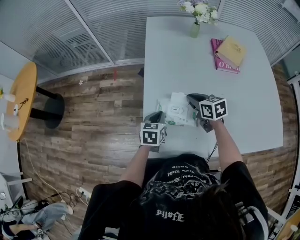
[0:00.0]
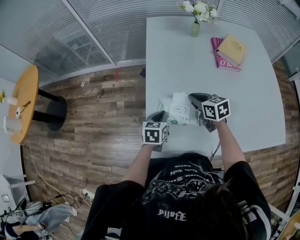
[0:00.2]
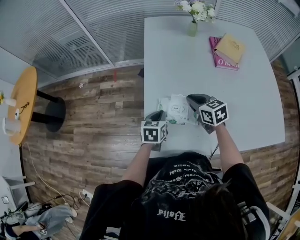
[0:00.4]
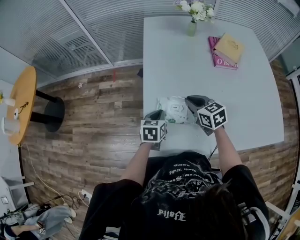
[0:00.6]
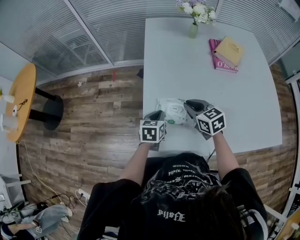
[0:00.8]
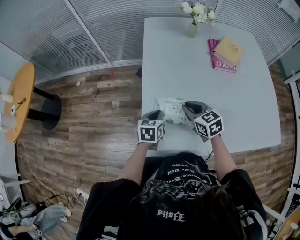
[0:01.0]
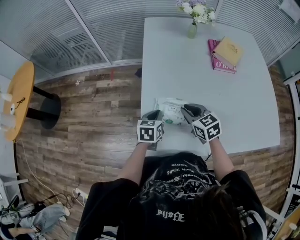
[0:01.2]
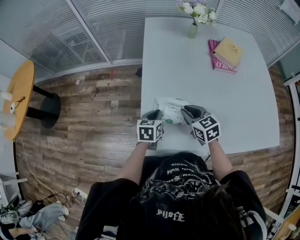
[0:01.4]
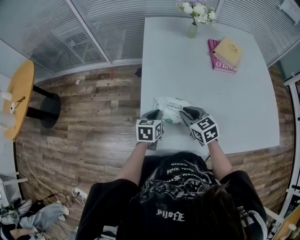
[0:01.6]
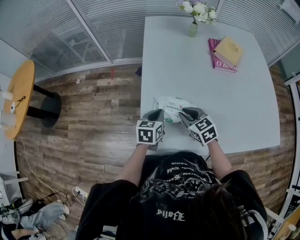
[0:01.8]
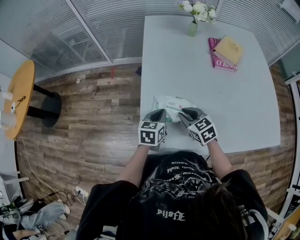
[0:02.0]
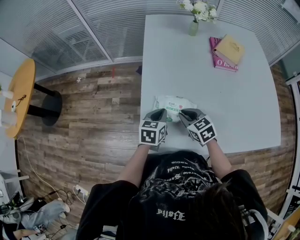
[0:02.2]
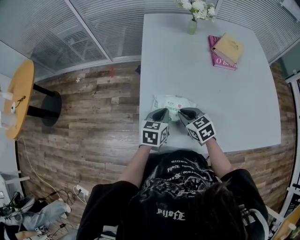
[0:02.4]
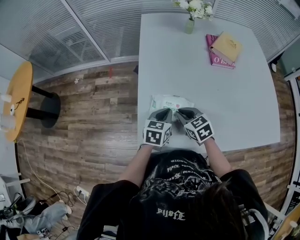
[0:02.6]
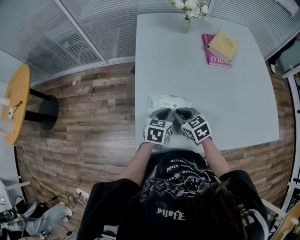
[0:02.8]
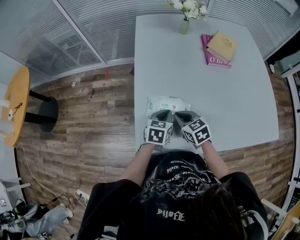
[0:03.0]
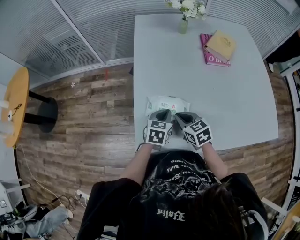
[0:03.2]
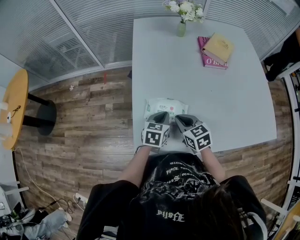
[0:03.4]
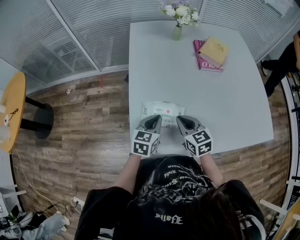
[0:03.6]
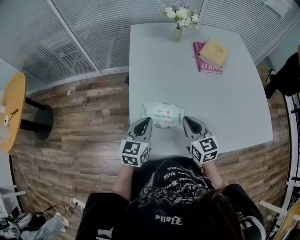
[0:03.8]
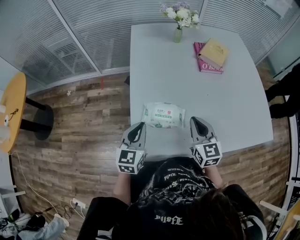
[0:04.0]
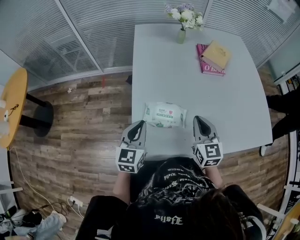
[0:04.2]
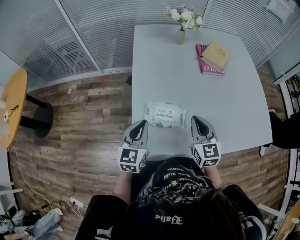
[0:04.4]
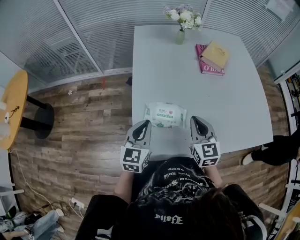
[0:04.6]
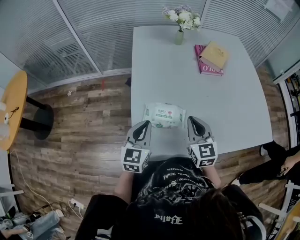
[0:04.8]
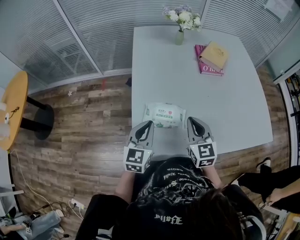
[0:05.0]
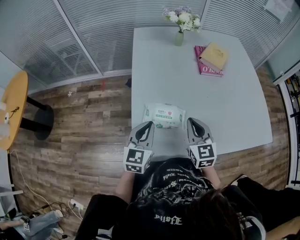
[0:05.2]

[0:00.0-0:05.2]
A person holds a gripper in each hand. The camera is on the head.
0:00.0 to 0:01.8: The right gripper goes roughly 10 cm backward, and turns by about 20 degrees.
0:01.8 to 0:03.4: The left gripper goes approximately 5 cm to the right.
0:03.4 to 0:05.2: The right gripper is displaced upward and to the right by about 10 cm, and swivels some 30 degrees. The left gripper shifts roughly 15 cm upward and to the left, and swivels about 30 degrees.

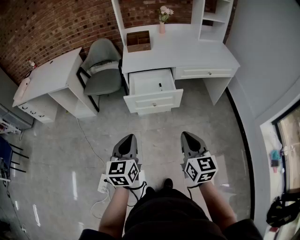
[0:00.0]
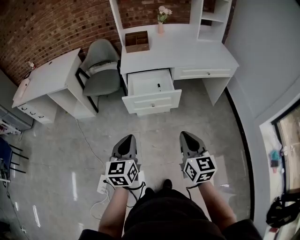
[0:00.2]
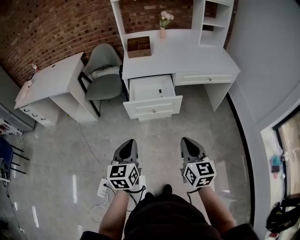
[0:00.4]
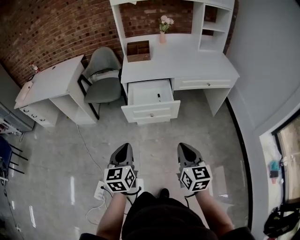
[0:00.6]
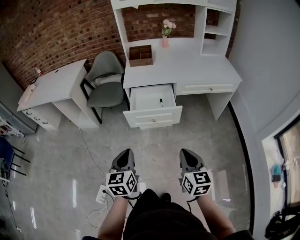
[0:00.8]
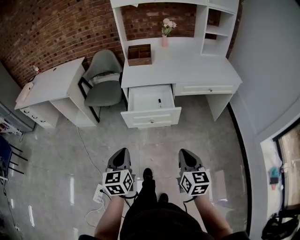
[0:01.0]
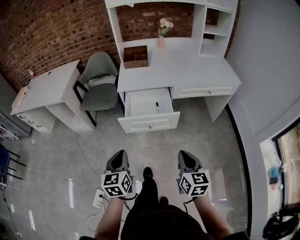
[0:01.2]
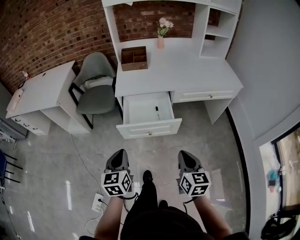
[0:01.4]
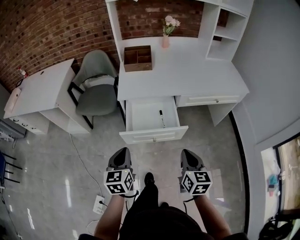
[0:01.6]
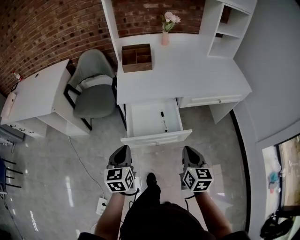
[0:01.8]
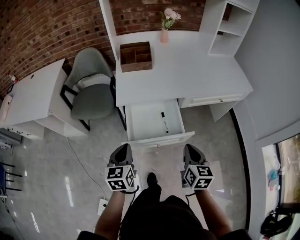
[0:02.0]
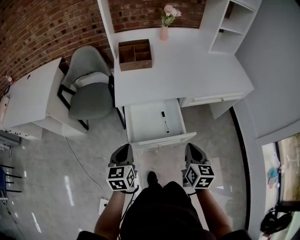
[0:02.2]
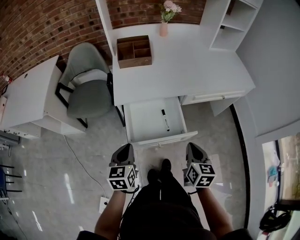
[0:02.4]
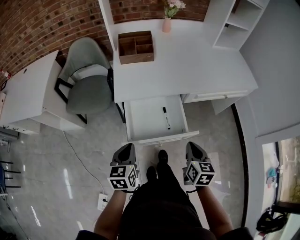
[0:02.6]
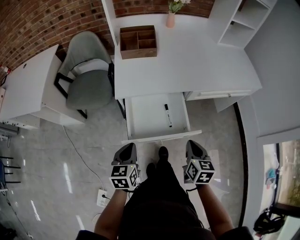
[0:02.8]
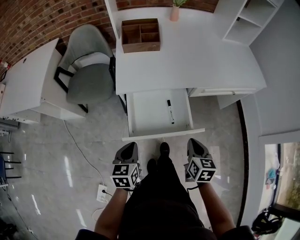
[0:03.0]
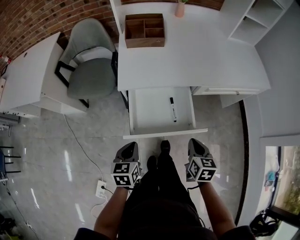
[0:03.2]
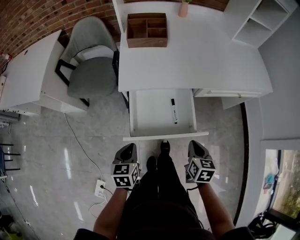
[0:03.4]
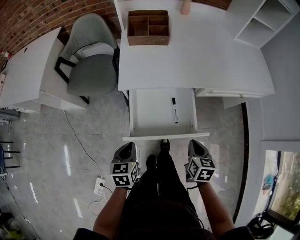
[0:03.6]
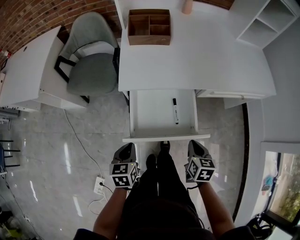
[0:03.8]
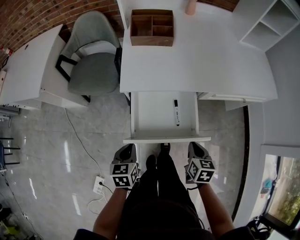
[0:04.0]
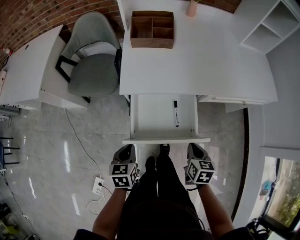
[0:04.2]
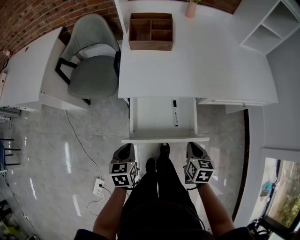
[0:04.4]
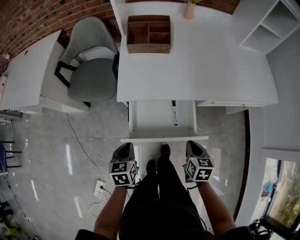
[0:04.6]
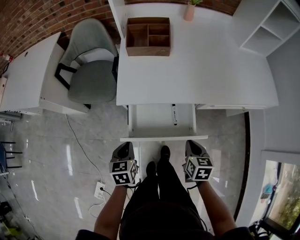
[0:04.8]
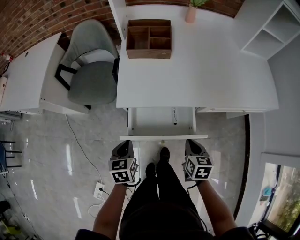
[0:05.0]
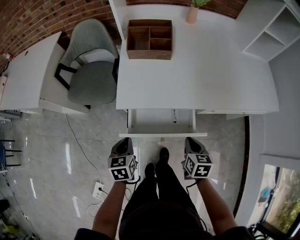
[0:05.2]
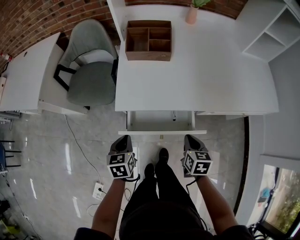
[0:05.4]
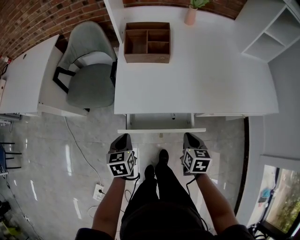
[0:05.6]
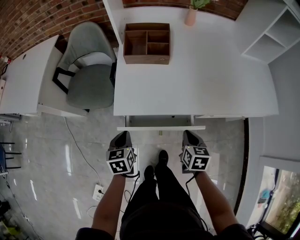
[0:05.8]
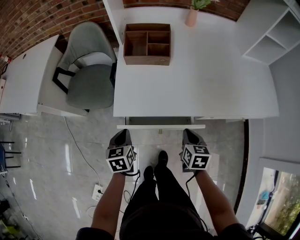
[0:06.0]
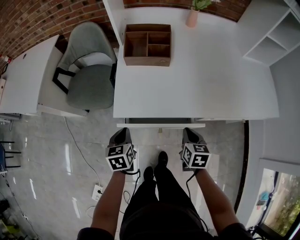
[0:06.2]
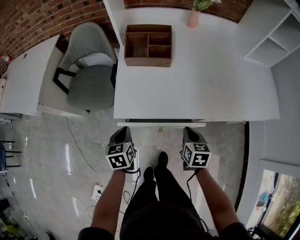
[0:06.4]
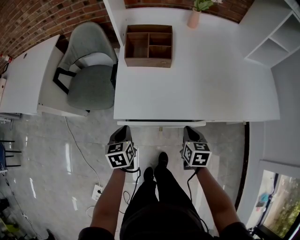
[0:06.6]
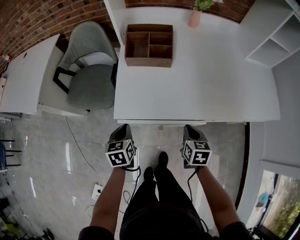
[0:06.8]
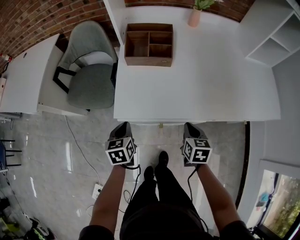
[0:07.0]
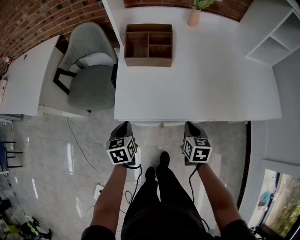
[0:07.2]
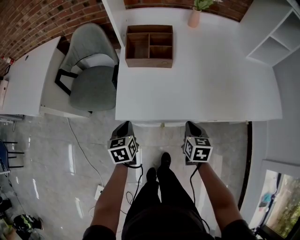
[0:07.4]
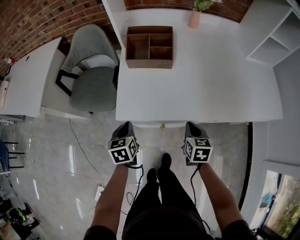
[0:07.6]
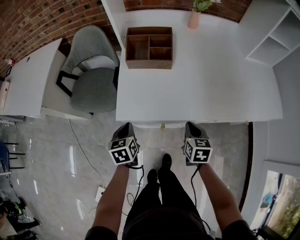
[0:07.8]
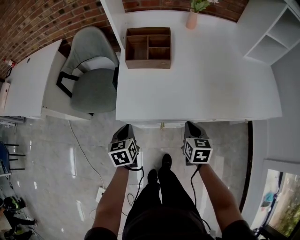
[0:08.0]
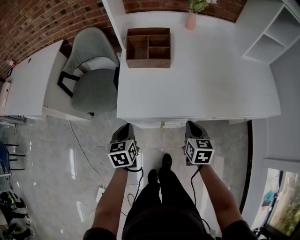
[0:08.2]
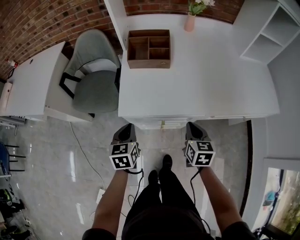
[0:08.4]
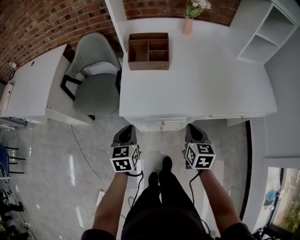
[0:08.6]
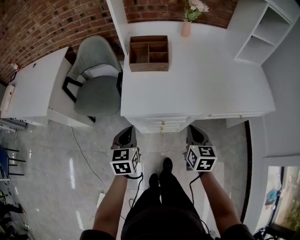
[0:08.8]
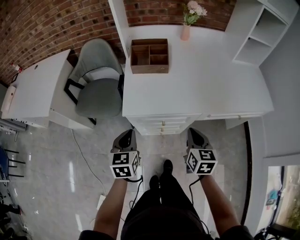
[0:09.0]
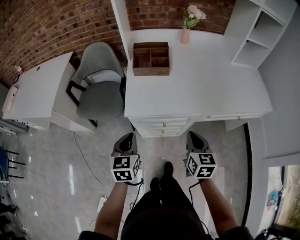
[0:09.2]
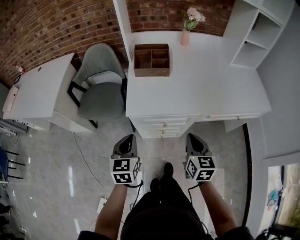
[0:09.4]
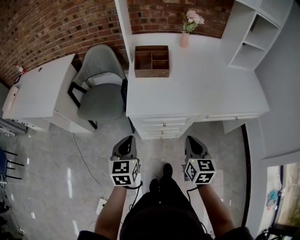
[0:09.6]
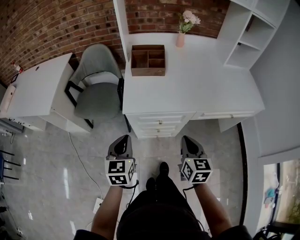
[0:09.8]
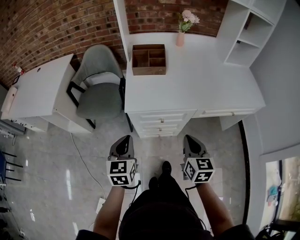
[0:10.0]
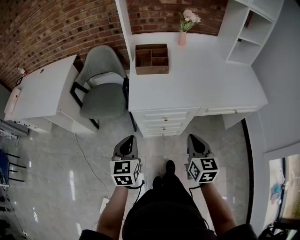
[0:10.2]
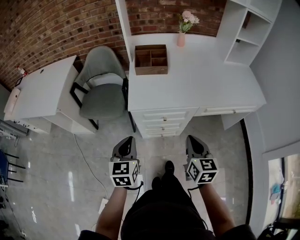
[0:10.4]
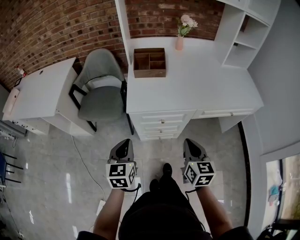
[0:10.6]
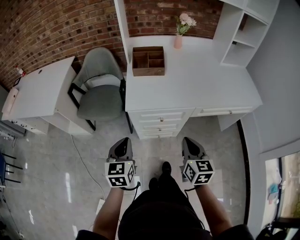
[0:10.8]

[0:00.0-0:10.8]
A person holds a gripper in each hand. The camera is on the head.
0:00.0 to 0:01.6: Both grippers travel together forward, approximately 20 cm.
0:01.6 to 0:03.0: The right gripper moves forward and downward, roughly 15 cm. Meanwhile the left gripper travels downward and forward by about 15 cm.
0:03.0 to 0:04.6: The right gripper is displaced forward and downward by roughly 10 cm, while the left gripper heads forward, covering roughly 5 cm.
0:04.6 to 0:06.2: The grippers both shift forward by about 15 cm.
0:06.2 to 0:07.8: The grippers stay close to where they were, moving slightly.
0:07.8 to 0:09.2: Both grippers travel together upward and backward, about 15 cm. The left gripper changes its angle by some 20 degrees.
0:09.2 to 0:10.8: Both grippers travel together backward, roughly 10 cm.

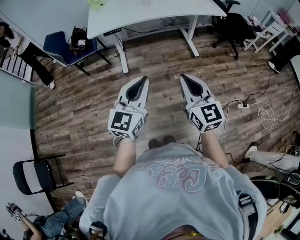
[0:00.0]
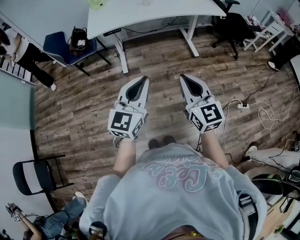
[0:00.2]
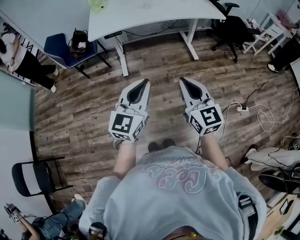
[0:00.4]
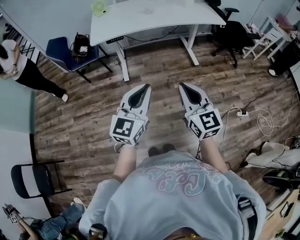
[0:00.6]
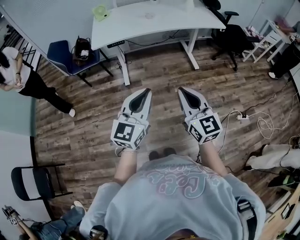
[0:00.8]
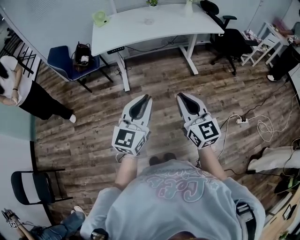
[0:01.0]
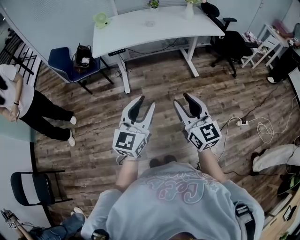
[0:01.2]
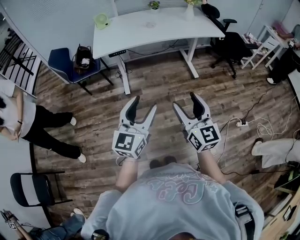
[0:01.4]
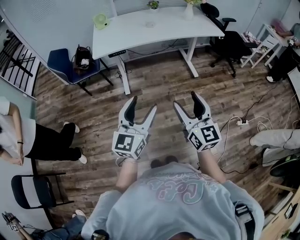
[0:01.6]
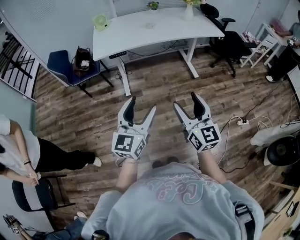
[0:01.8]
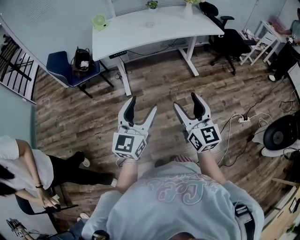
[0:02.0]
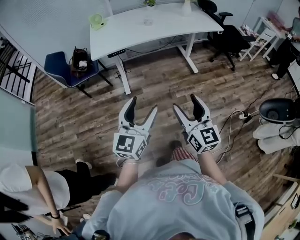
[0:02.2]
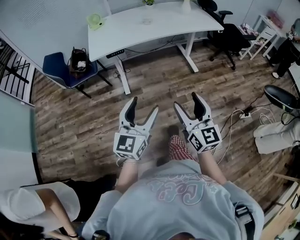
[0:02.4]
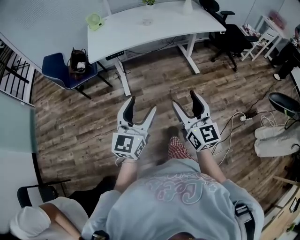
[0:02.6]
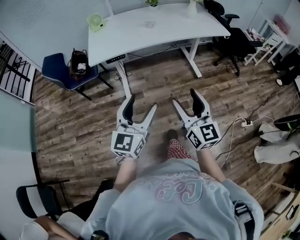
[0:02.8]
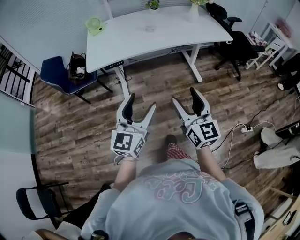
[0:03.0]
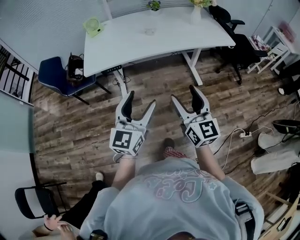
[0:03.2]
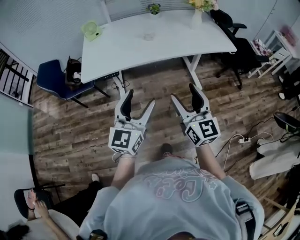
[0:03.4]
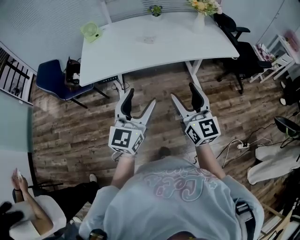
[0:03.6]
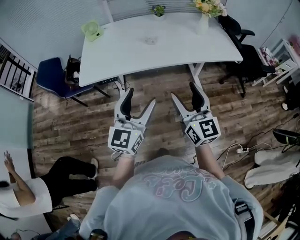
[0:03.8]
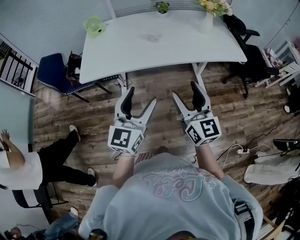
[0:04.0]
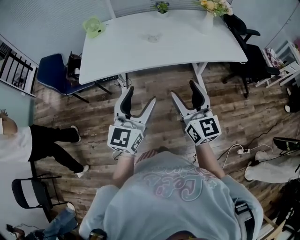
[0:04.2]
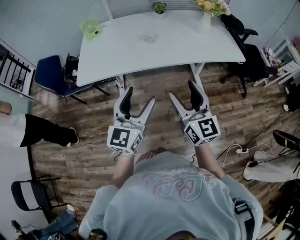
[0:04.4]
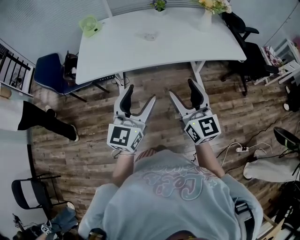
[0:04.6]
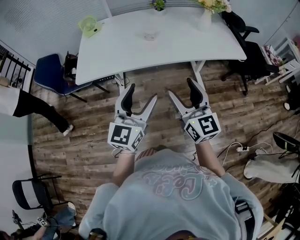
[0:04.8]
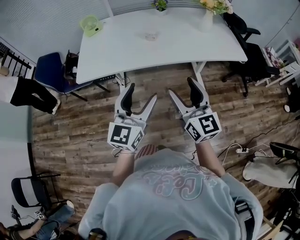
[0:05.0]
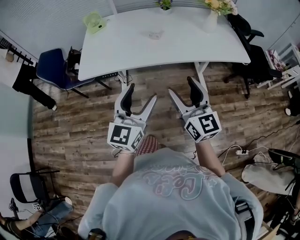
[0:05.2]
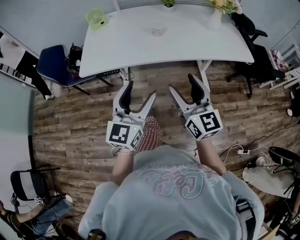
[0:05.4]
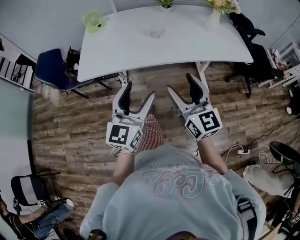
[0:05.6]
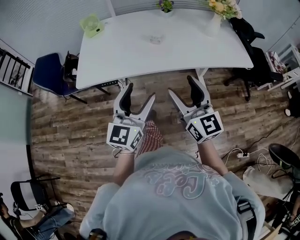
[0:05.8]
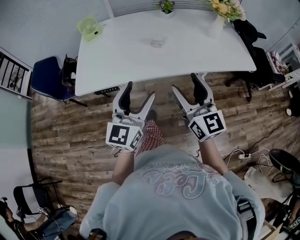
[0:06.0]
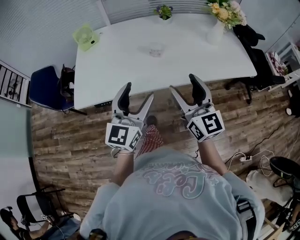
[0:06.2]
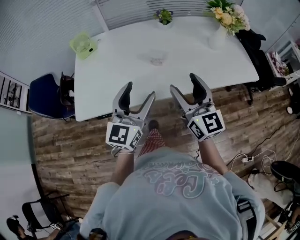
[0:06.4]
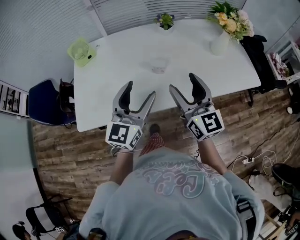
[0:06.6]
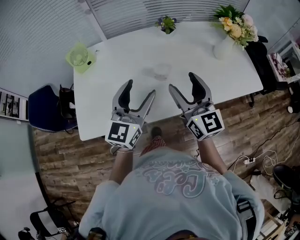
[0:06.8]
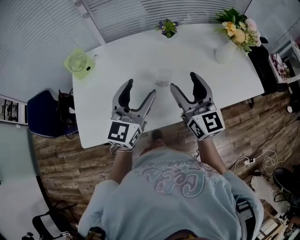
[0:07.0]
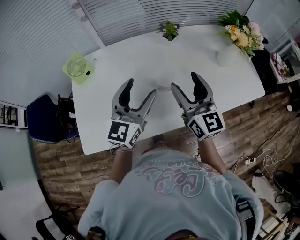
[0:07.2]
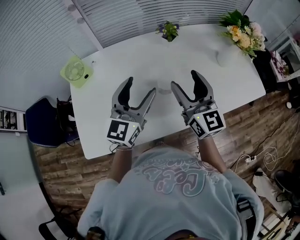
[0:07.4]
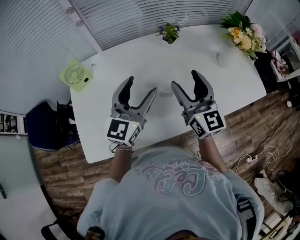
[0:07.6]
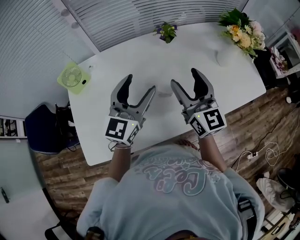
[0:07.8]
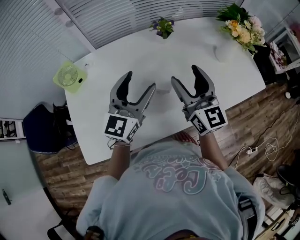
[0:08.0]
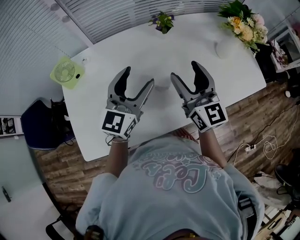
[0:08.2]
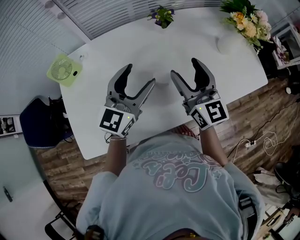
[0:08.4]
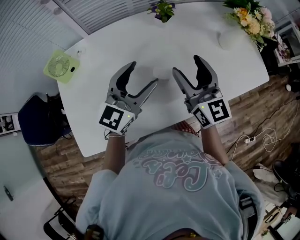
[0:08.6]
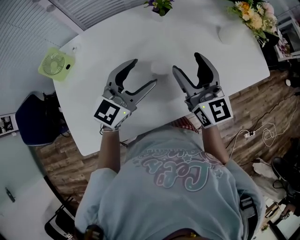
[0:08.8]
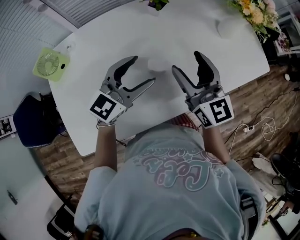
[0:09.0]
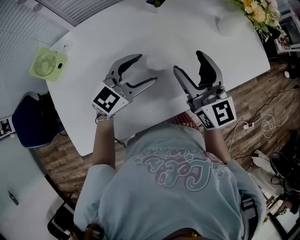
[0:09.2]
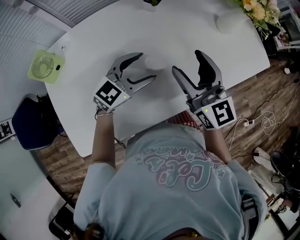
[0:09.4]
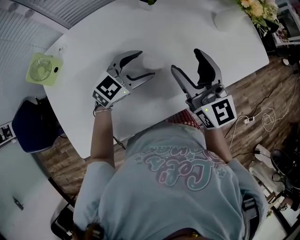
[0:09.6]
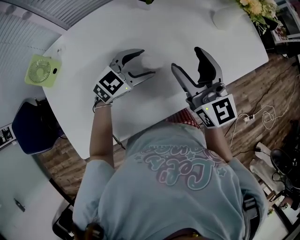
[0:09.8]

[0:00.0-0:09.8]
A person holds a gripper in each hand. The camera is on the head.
0:00.0 to 0:01.4: The right gripper opens up. The left gripper opens up.
0:01.4 to 0:02.8: The two grippers go approximately 10 cm forward.
0:02.8 to 0:04.2: Both grippers move forward, approximately 25 cm.
0:04.2 to 0:05.6: The grippers stay close to where they were, moving slightly.
0:05.6 to 0:07.0: The grippers both shift forward by some 35 cm.
0:07.0 to 0:08.4: Both grippers move forward, some 10 cm.
0:08.4 to 0:09.8: The left gripper heads downward, covering approximately 15 cm, and rotates some 40 degrees.
